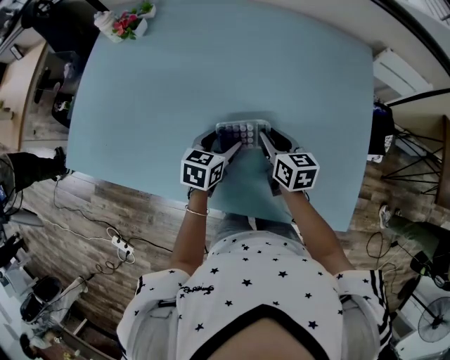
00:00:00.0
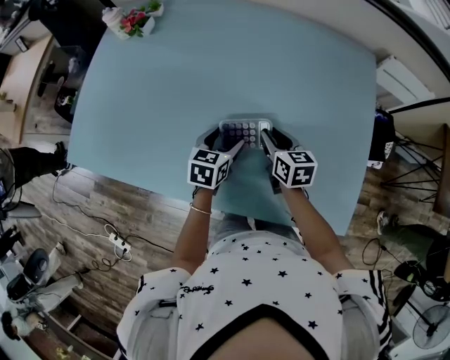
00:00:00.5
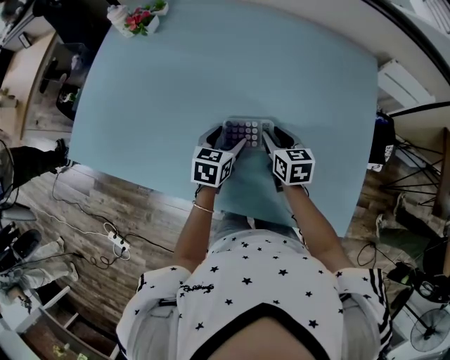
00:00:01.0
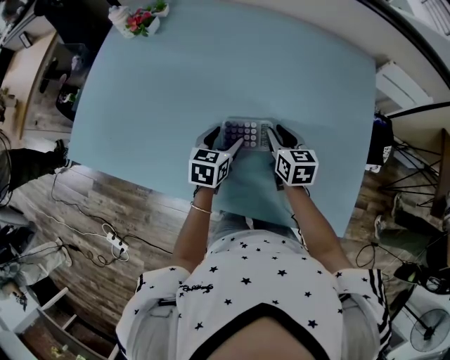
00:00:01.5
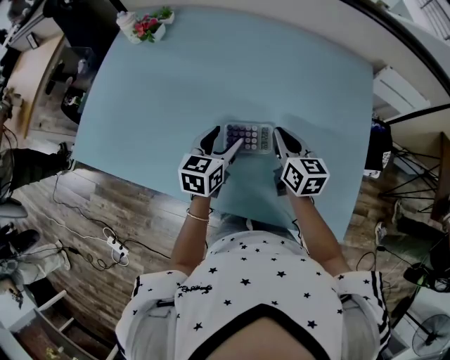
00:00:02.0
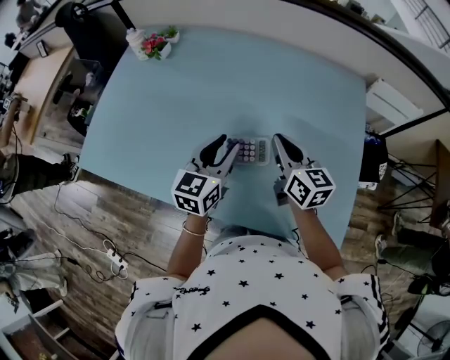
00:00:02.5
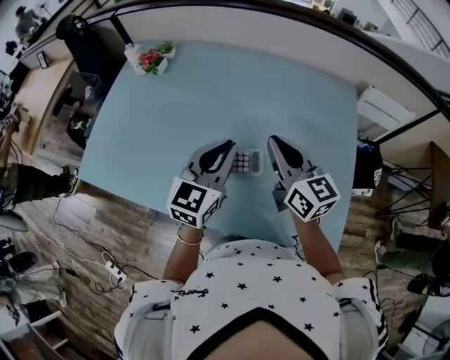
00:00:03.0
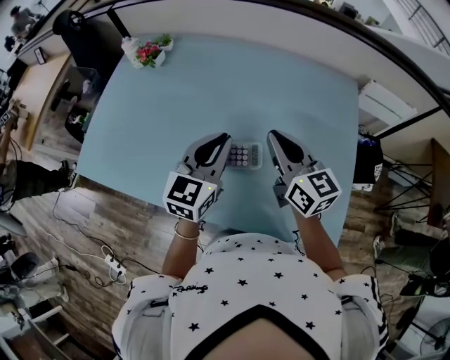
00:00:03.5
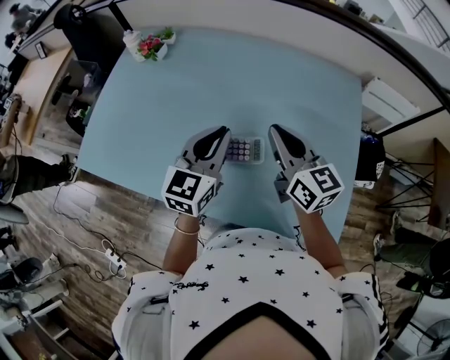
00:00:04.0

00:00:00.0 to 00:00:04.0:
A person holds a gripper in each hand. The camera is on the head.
00:00:00.0 to 00:00:02.0: Both grippers move upward, approximately 5 cm. The right gripper closes.
00:00:02.0 to 00:00:04.0: Both grippers travel together upward, some 15 cm. The right gripper changes its angle by about 20 degrees. The left gripper turns by roughly 20 degrees, and closes its fingers.

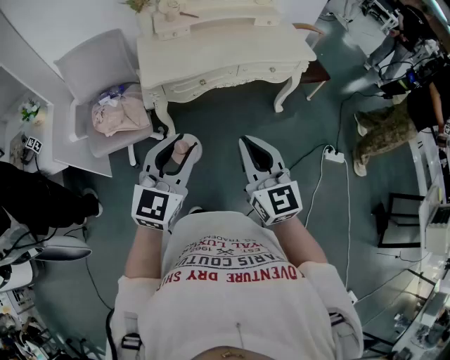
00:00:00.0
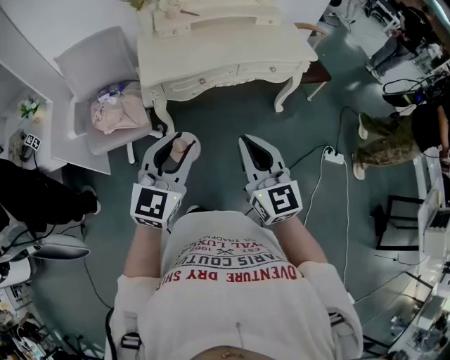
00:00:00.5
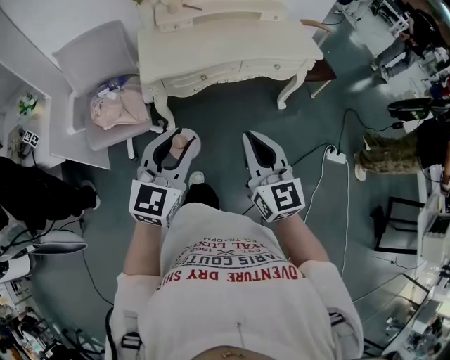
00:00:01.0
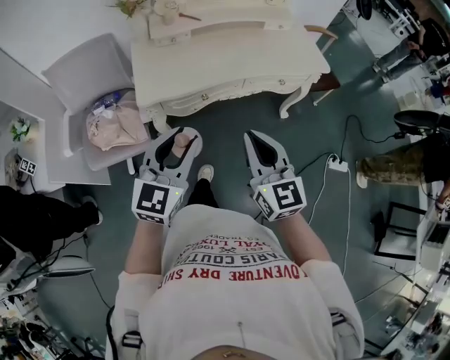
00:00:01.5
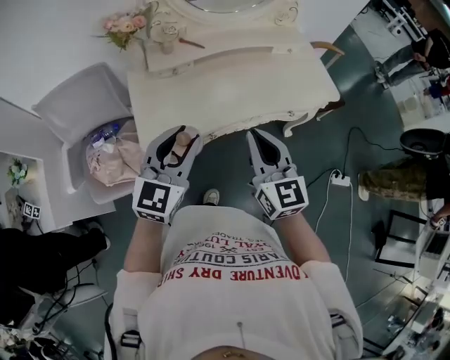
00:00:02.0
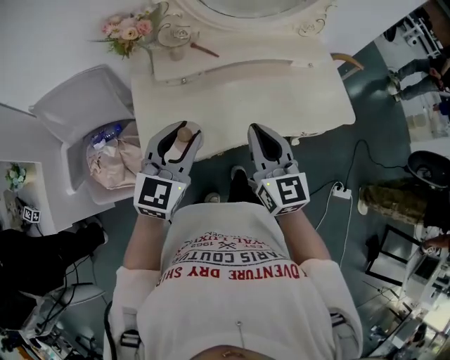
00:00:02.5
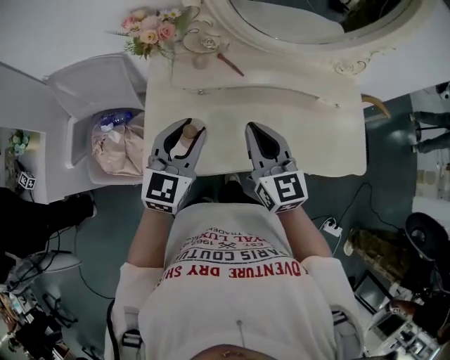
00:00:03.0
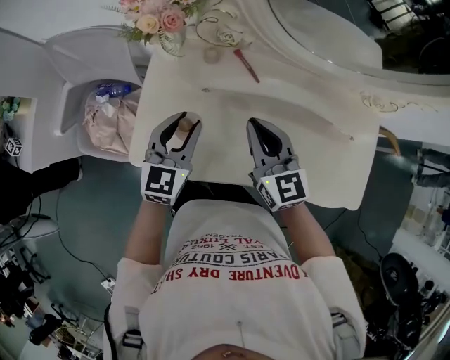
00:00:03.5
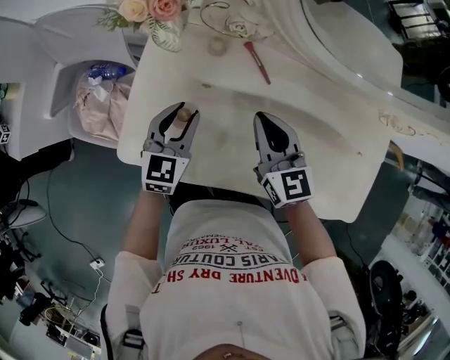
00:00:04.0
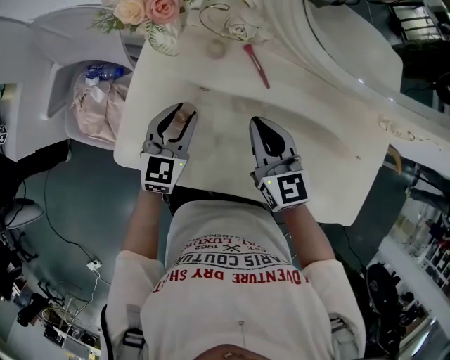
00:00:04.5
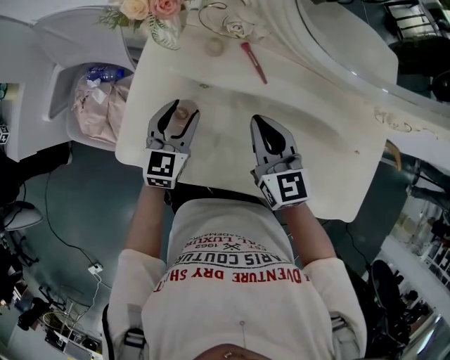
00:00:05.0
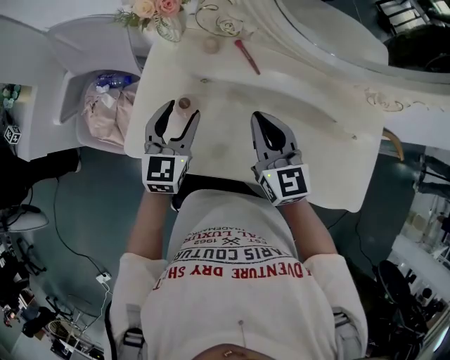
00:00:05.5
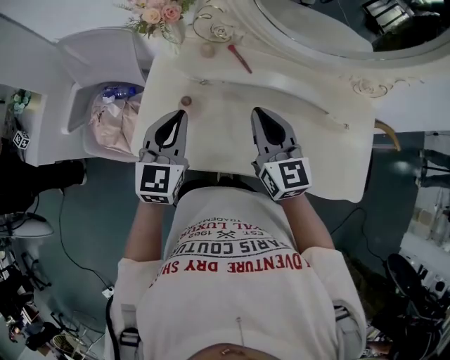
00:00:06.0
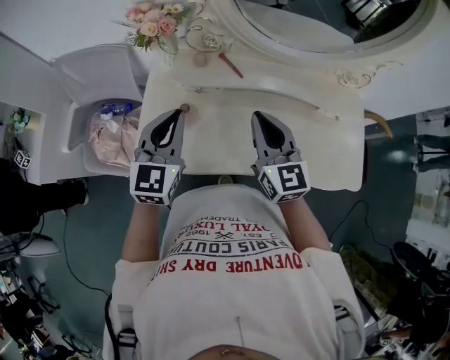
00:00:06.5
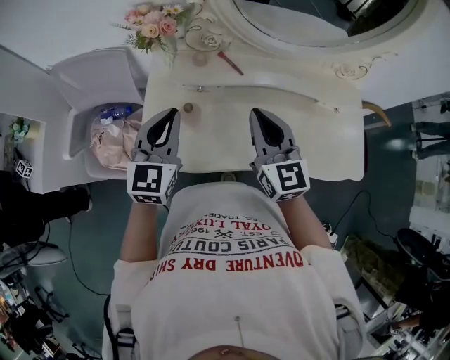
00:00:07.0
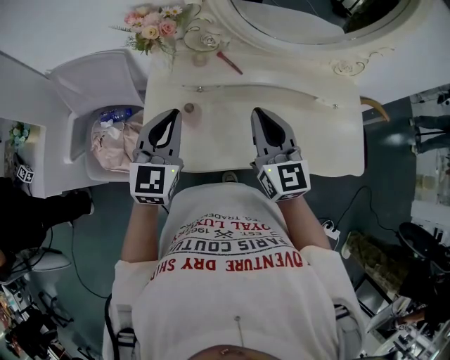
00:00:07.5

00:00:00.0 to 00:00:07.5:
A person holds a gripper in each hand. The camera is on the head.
00:00:00.0 to 00:00:02.0: The grippers both shift forward by some 35 cm.
00:00:02.0 to 00:00:04.0: The right gripper shifts by about 40 cm, and turns by about 40 degrees; the left gripper ends up some 40 cm from where it was, and changes its angle by roughly 40 degrees.
00:00:04.0 to 00:00:05.5: The left gripper goes roughly 5 cm upward, and opens its fingers; the right gripper changes place by some 5 cm.
00:00:05.5 to 00:00:07.5: The grippers both shift upward and backward by some 15 cm. The left gripper closes its fingers.

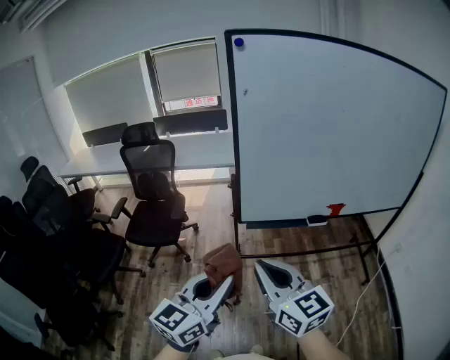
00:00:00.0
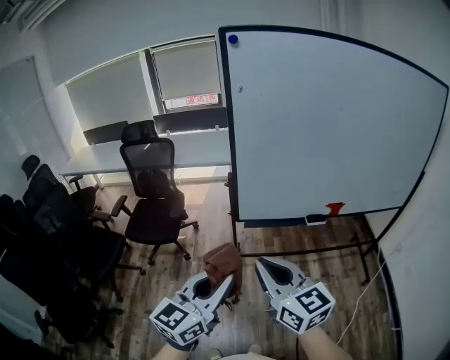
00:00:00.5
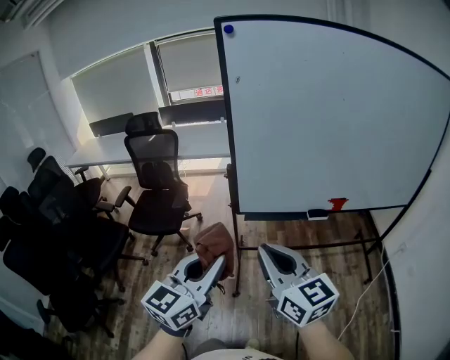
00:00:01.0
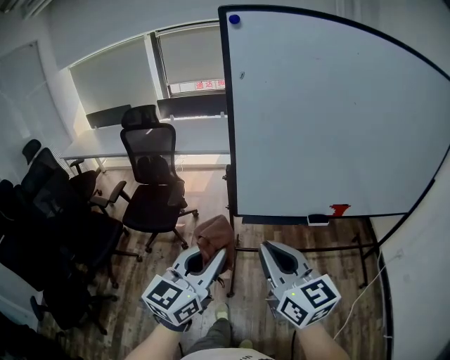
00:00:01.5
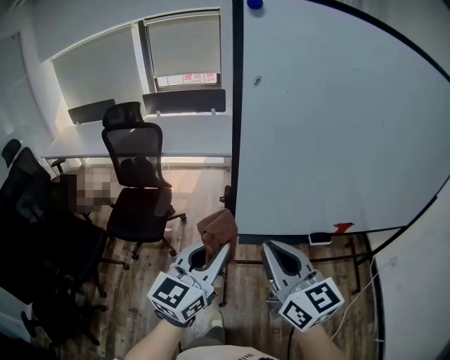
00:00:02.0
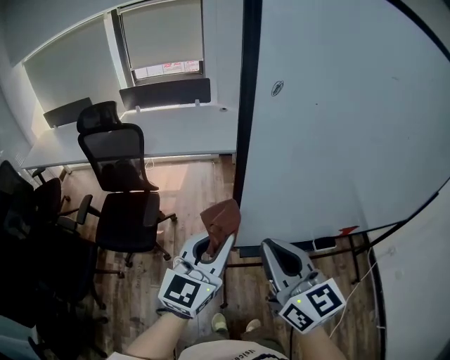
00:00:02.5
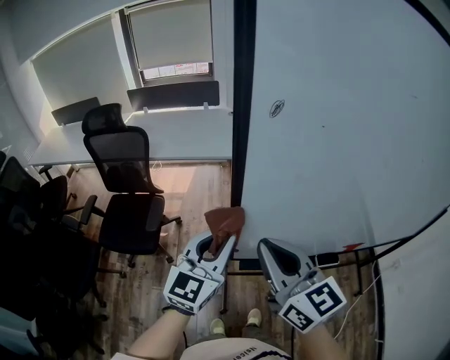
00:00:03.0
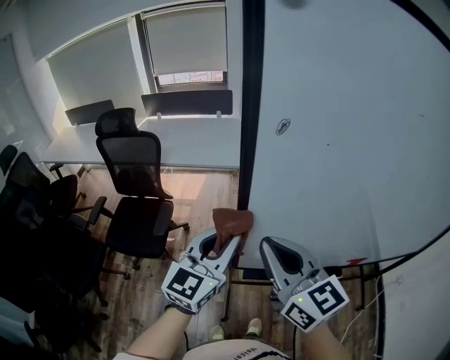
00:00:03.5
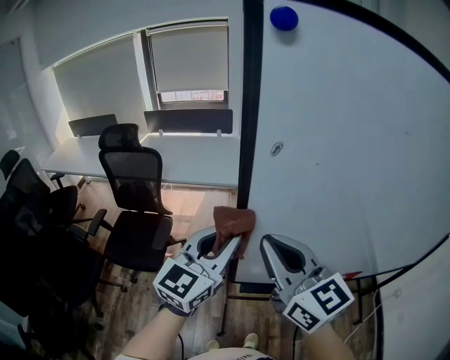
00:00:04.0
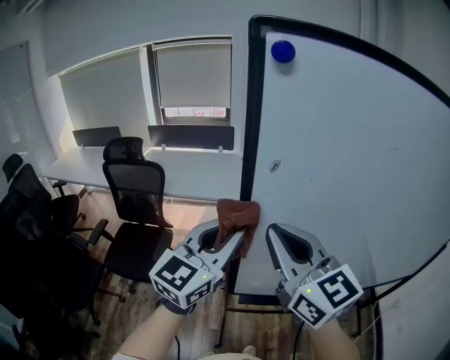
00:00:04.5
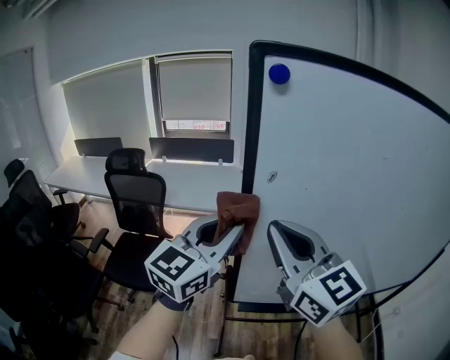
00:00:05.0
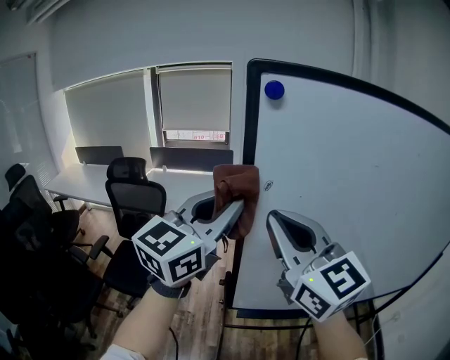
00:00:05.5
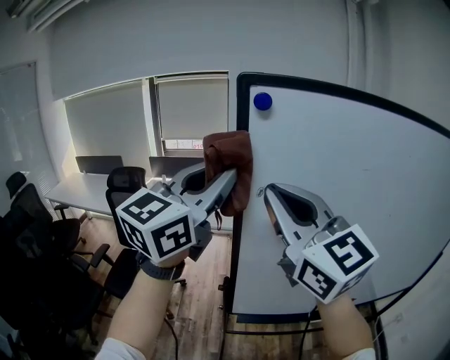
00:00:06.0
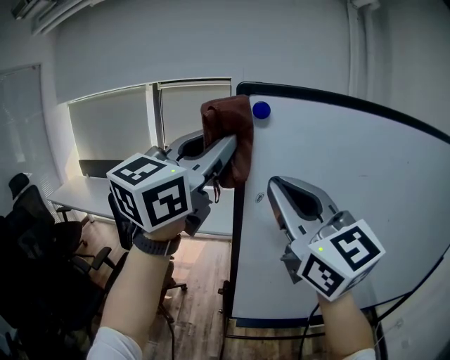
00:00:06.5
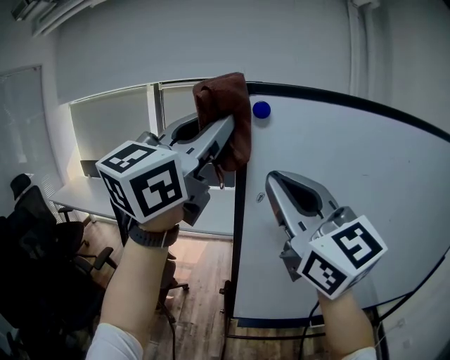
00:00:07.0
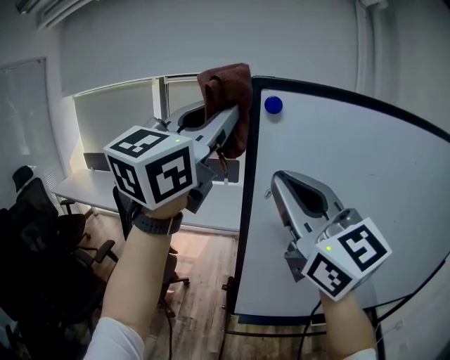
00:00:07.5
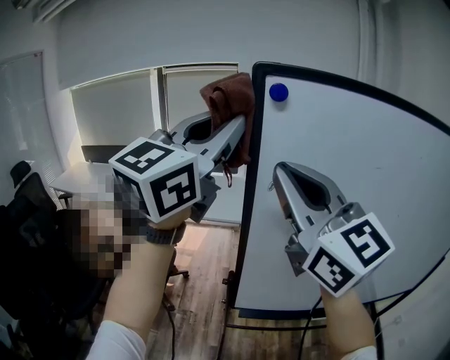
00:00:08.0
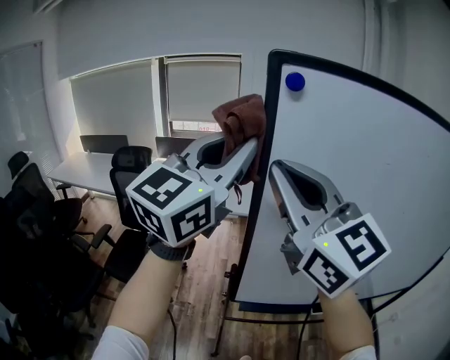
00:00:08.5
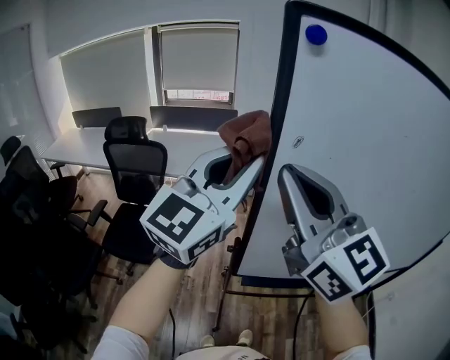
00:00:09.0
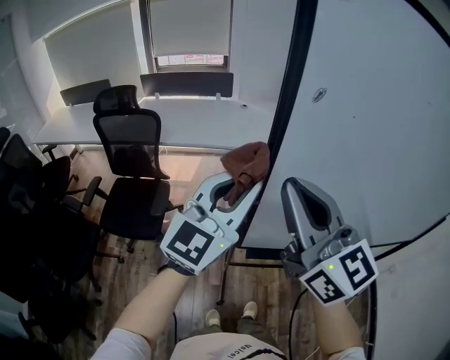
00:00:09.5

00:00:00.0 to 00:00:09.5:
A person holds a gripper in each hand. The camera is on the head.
00:00:00.0 to 00:00:02.0: Both grippers travel together forward, roughly 25 cm.
00:00:02.0 to 00:00:04.0: The two grippers go approximately 20 cm forward.
00:00:04.0 to 00:00:05.5: The two grippers go some 15 cm upward.
00:00:05.5 to 00:00:07.5: The right gripper shifts some 5 cm upward. Meanwhile the left gripper goes roughly 15 cm upward.
00:00:07.5 to 00:00:09.5: The right gripper heads downward, covering about 15 cm; the left gripper travels downward by roughly 30 cm.

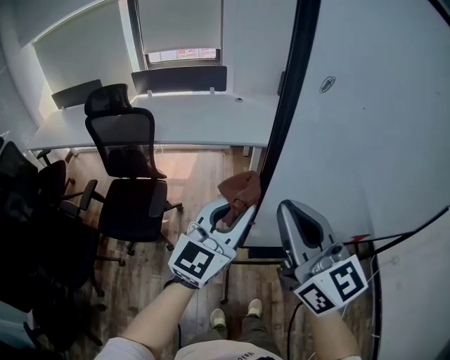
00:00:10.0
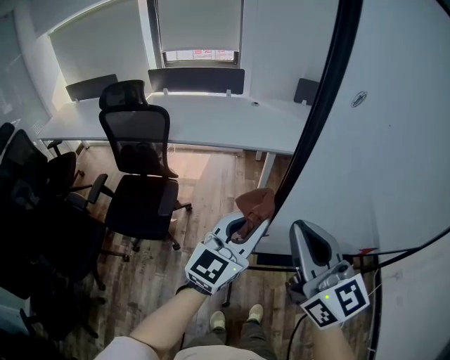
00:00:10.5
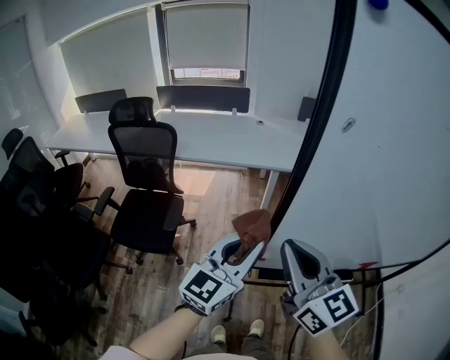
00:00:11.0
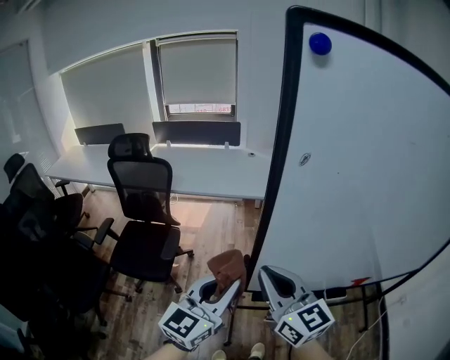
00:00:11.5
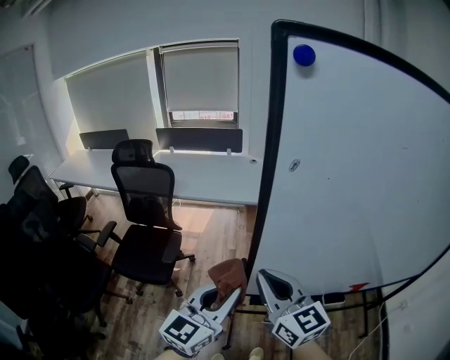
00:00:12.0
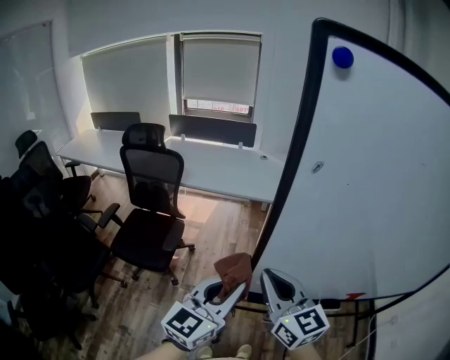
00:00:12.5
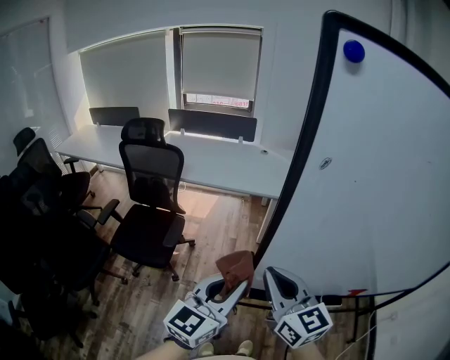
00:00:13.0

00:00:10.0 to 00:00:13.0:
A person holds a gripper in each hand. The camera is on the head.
00:00:10.0 to 00:00:11.5: The left gripper shifts some 10 cm backward, while the right gripper heads downward, covering about 5 cm.
00:00:11.5 to 00:00:13.0: The grippers move only a little.

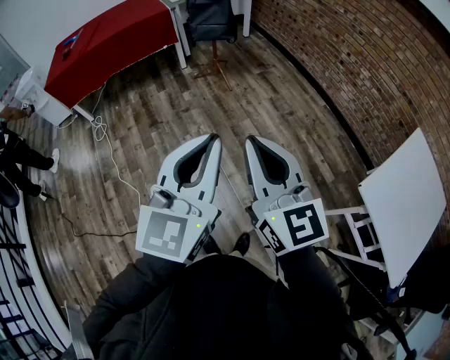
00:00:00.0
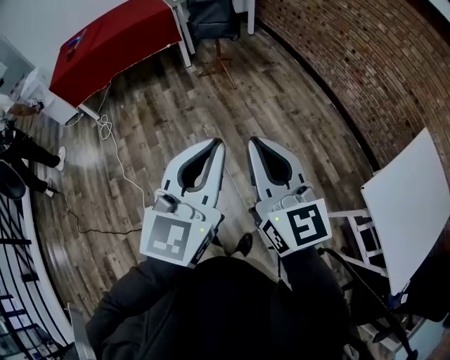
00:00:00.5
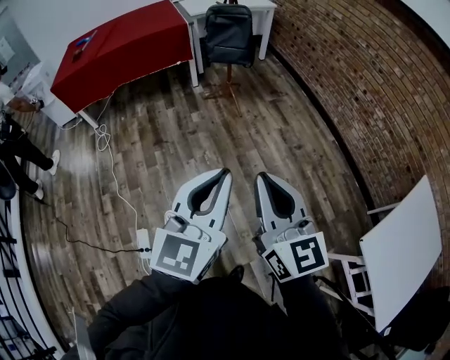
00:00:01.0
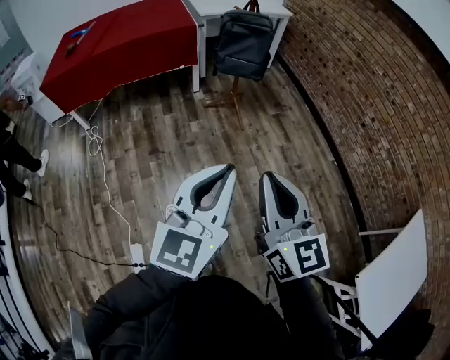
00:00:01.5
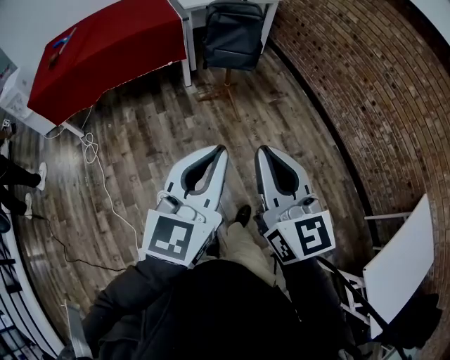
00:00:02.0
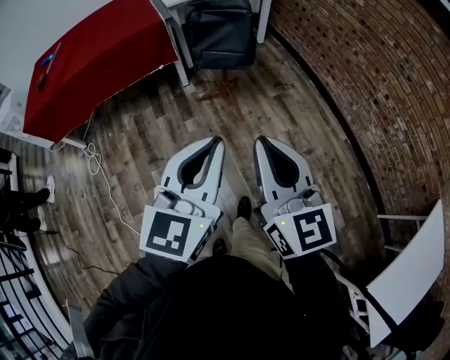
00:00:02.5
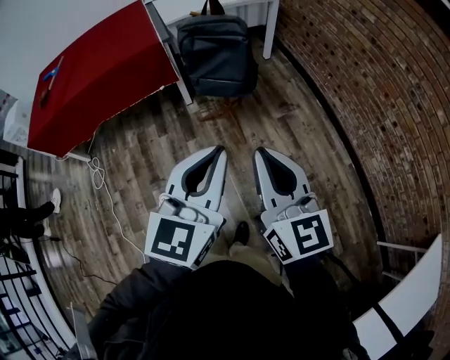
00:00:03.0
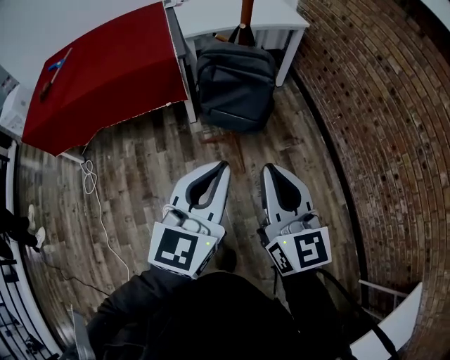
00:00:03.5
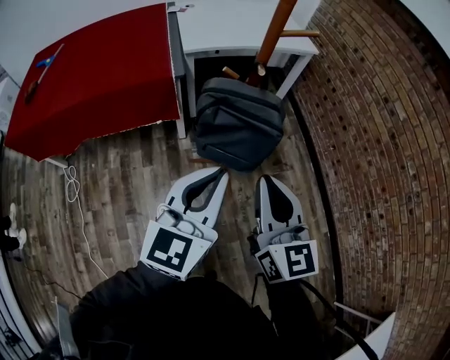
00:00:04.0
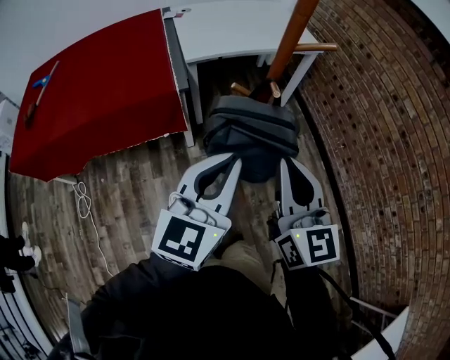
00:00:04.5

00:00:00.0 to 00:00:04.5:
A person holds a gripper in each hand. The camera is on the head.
00:00:00.0 to 00:00:02.0: Both grippers move forward, about 35 cm.
00:00:02.0 to 00:00:04.5: The pair of grippers is taken forward, some 60 cm.
